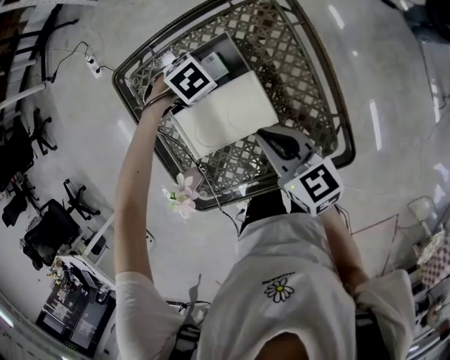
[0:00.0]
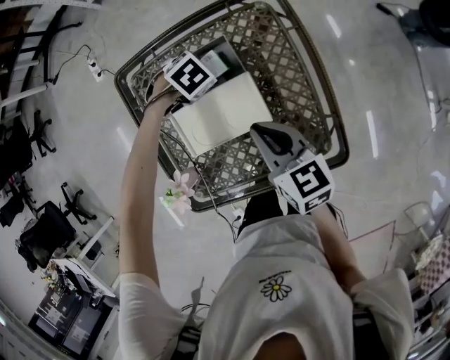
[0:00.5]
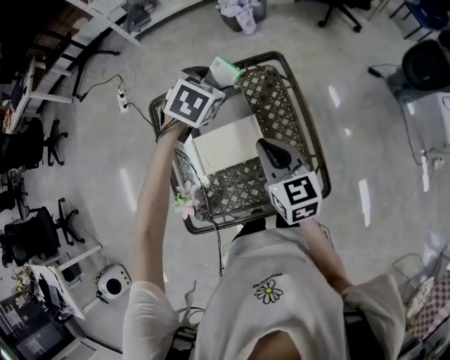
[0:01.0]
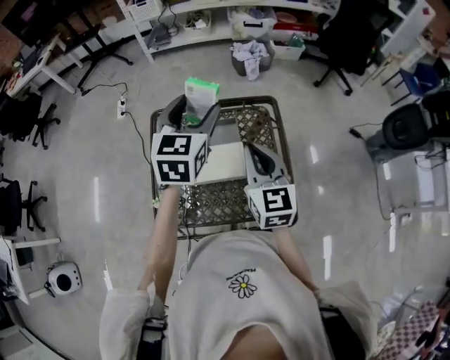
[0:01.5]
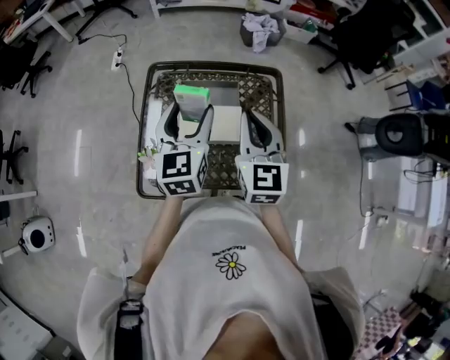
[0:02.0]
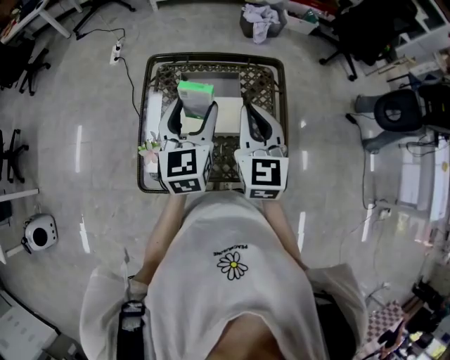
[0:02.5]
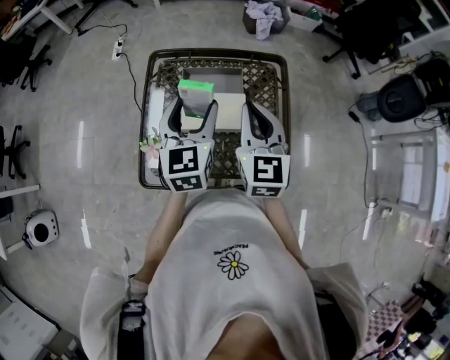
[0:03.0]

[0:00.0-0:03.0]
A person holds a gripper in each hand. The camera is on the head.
0:00.0 to 0:01.5: The left gripper moves upward, approximately 40 cm, and angles its fingers upward, by about 60 degrees. Meanwhile the right gripper is displaced upward by approximately 20 cm, and swivels approximately 30 degrees.
0:01.5 to 0:03.0: The left gripper is displaced backward and downward by some 15 cm.

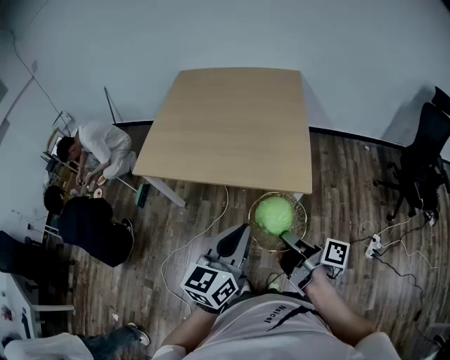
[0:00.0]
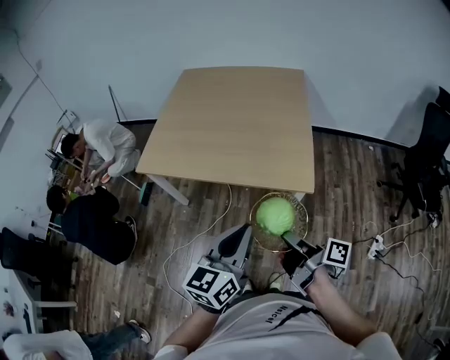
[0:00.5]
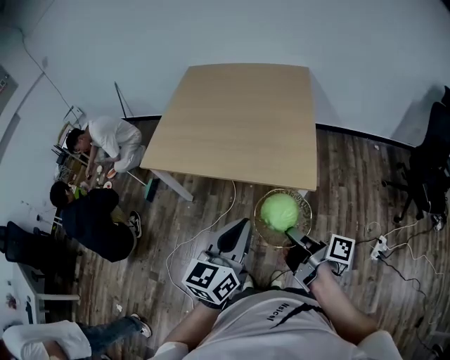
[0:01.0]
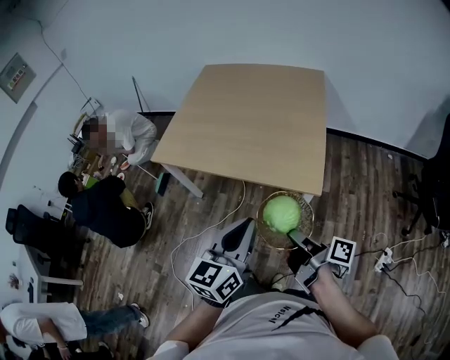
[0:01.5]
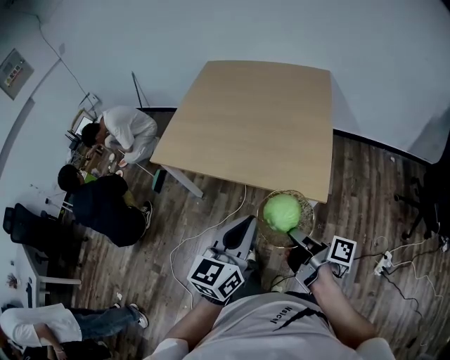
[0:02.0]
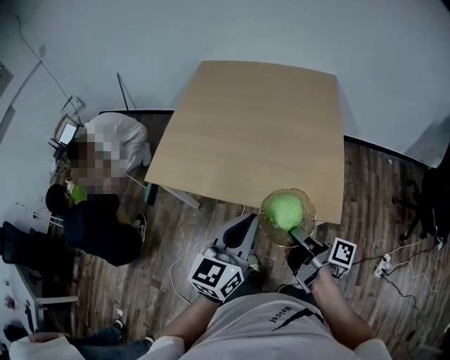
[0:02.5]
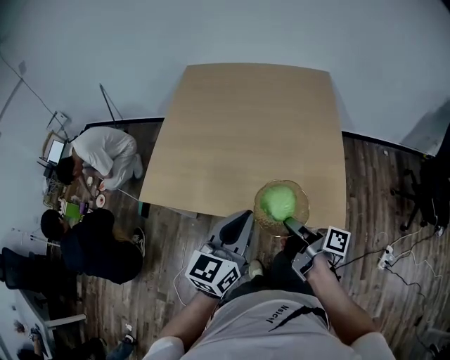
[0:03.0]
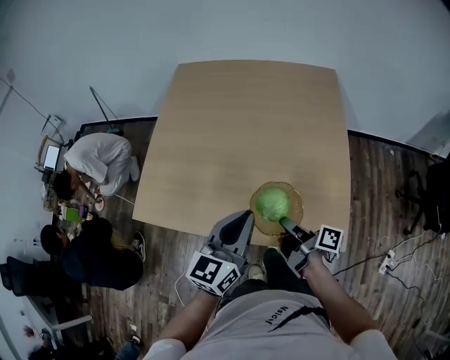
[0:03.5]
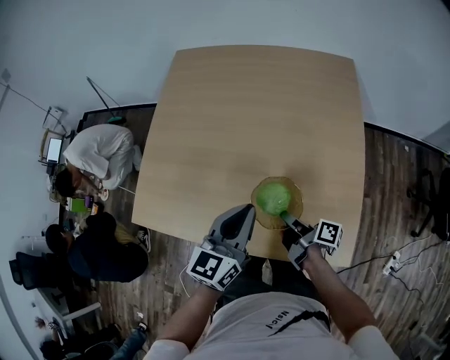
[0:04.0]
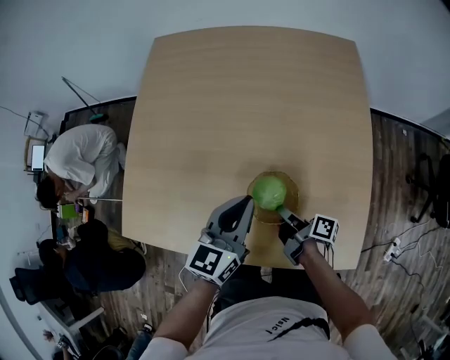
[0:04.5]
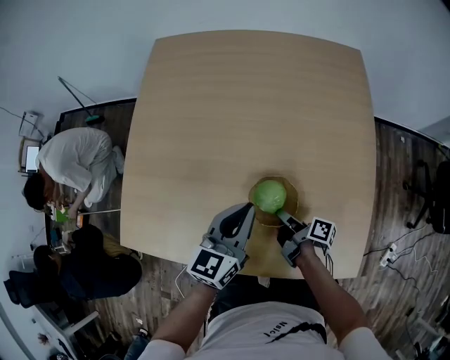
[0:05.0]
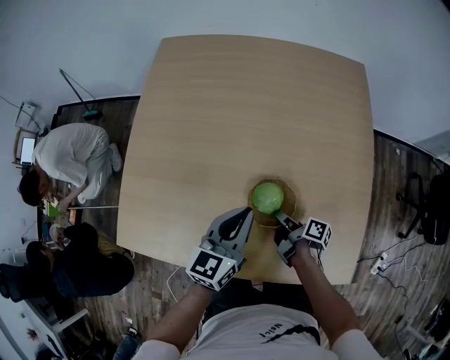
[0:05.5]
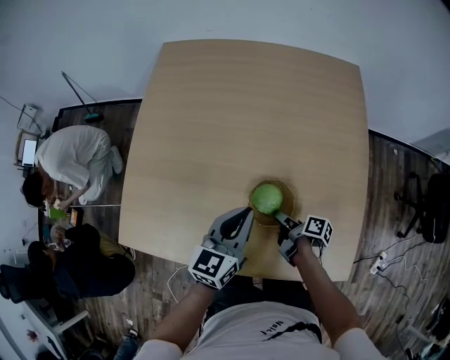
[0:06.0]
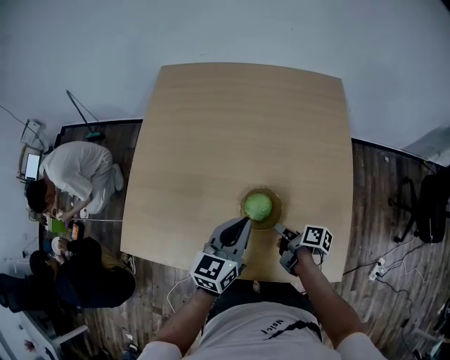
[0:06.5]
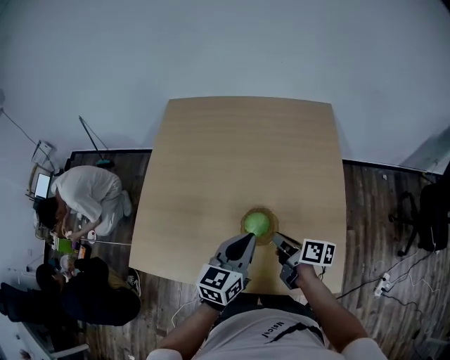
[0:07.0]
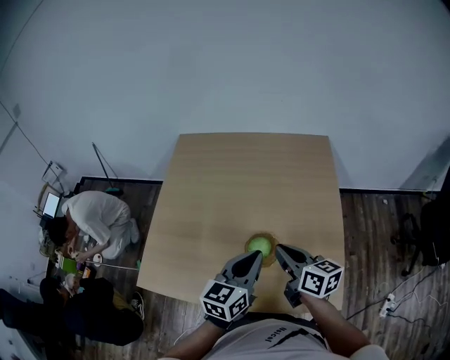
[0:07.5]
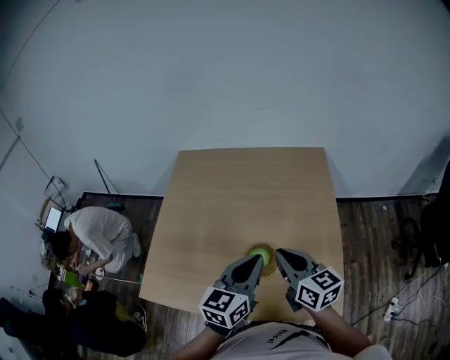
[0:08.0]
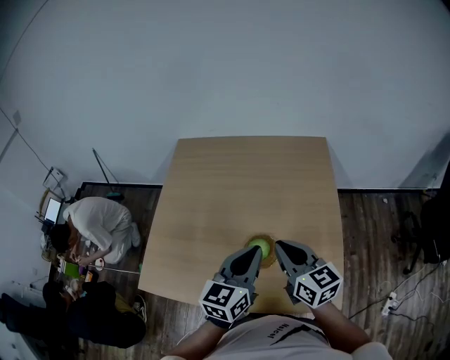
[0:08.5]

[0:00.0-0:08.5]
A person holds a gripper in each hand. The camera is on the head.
0:02.0 to 0:04.0: The left gripper changes place by roughly 40 cm.
0:04.0 to 0:06.5: The left gripper goes about 5 cm downward.
0:06.5 to 0:08.5: The left gripper is displaced upward by roughly 15 cm.

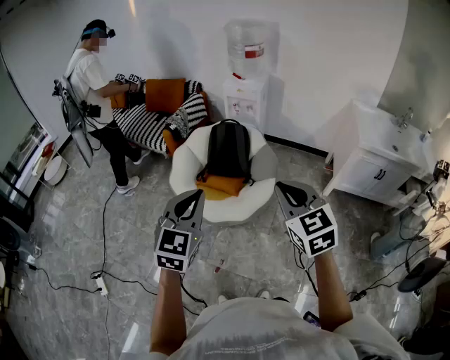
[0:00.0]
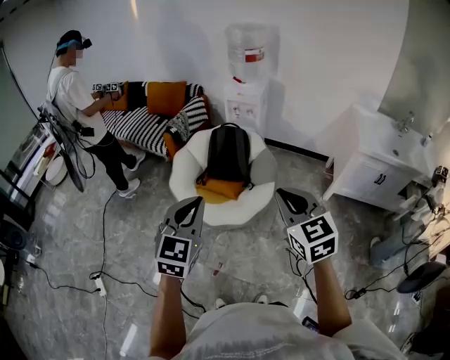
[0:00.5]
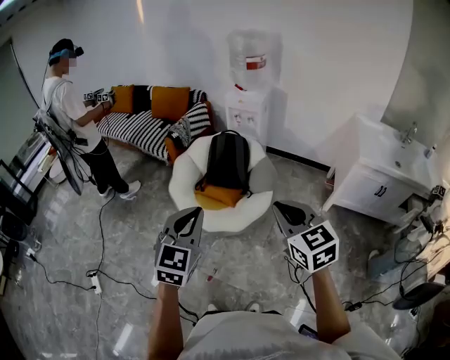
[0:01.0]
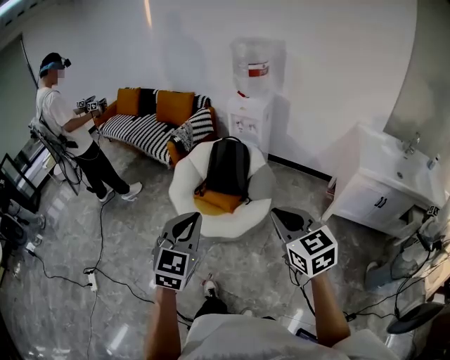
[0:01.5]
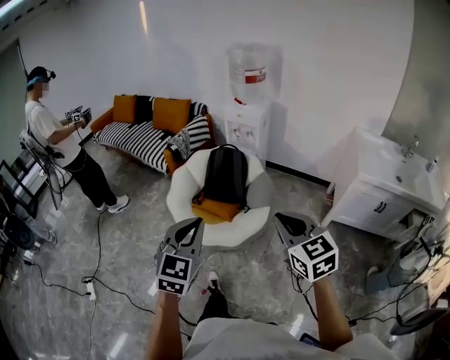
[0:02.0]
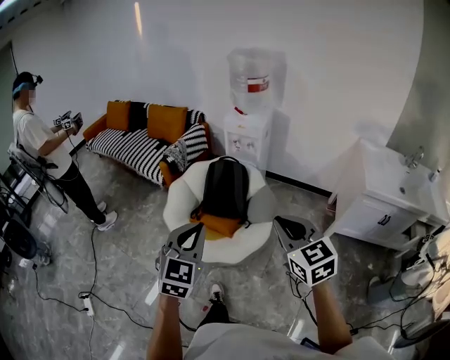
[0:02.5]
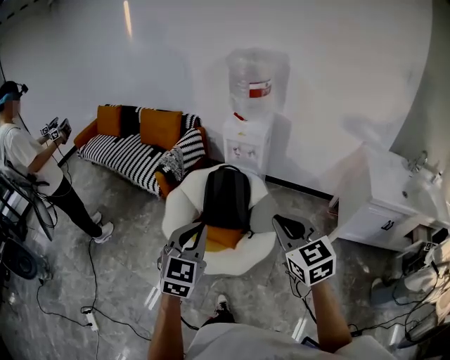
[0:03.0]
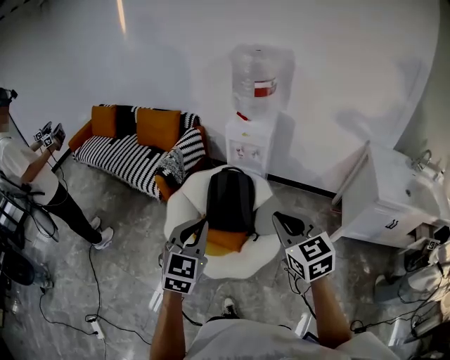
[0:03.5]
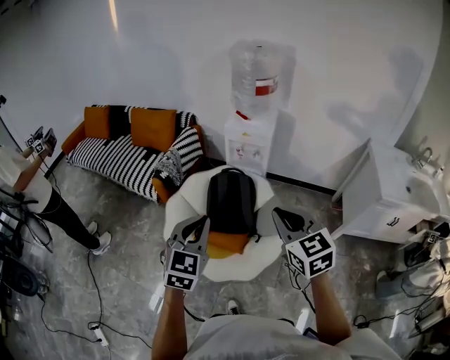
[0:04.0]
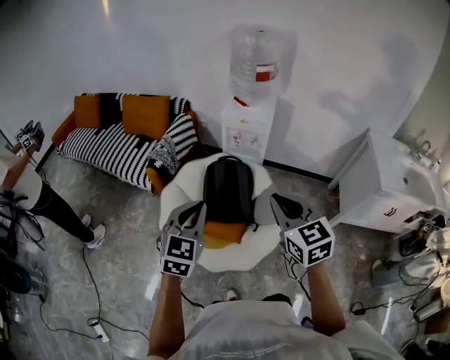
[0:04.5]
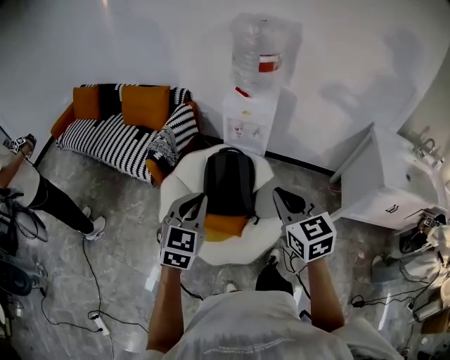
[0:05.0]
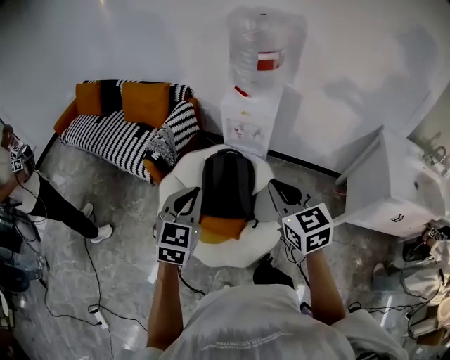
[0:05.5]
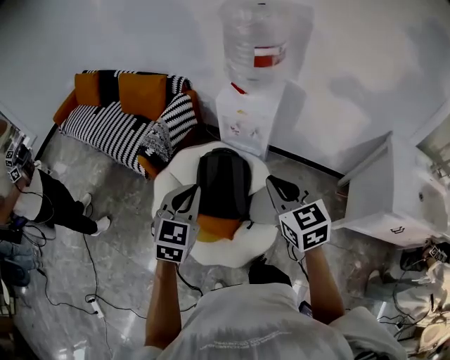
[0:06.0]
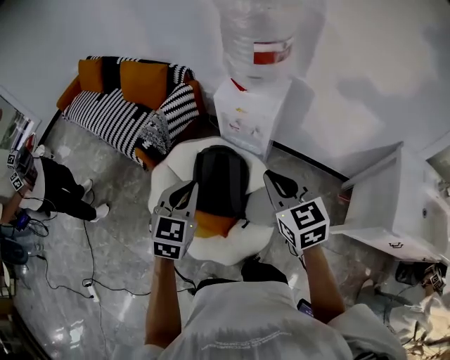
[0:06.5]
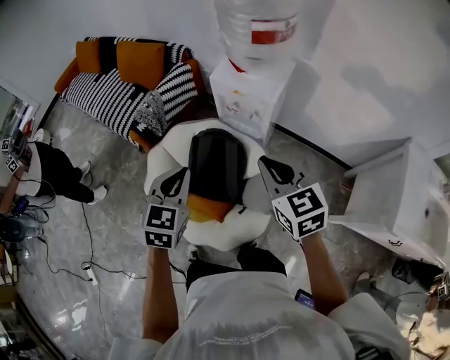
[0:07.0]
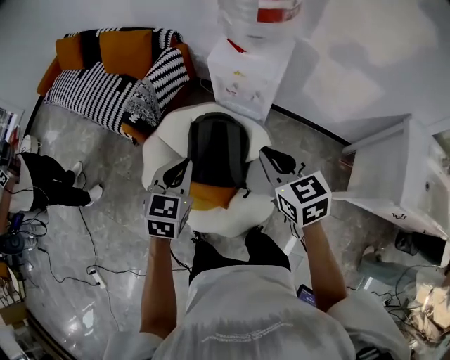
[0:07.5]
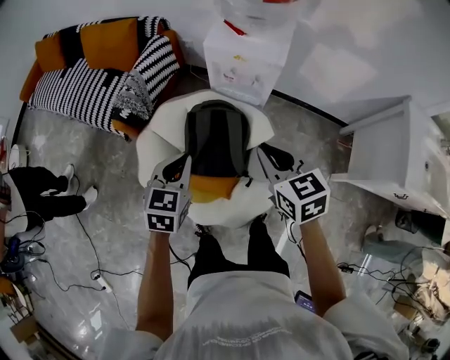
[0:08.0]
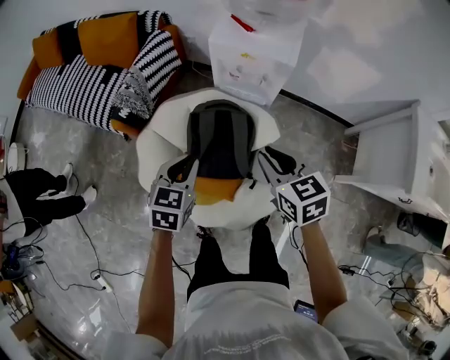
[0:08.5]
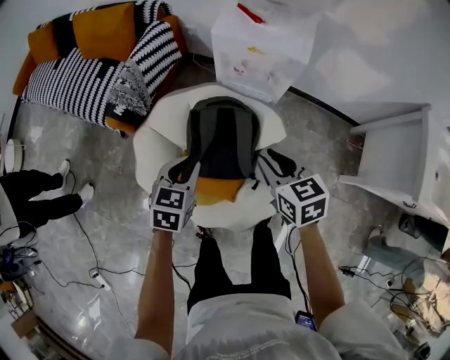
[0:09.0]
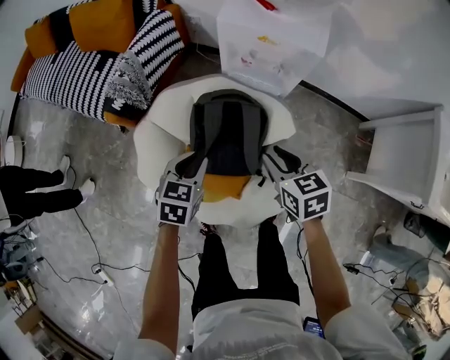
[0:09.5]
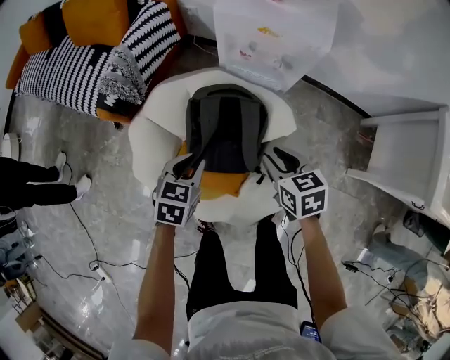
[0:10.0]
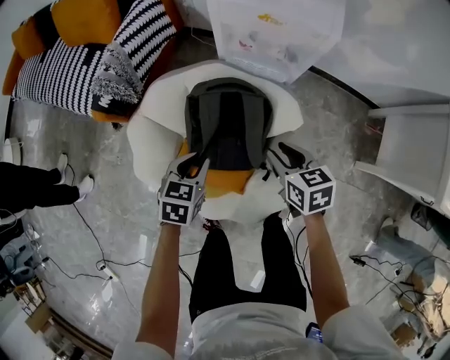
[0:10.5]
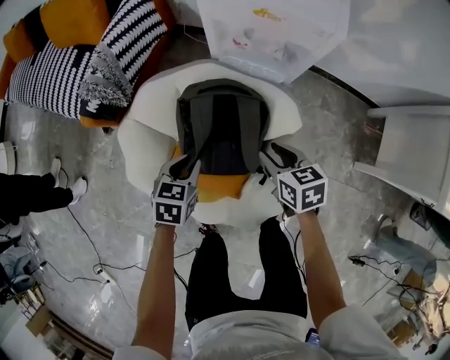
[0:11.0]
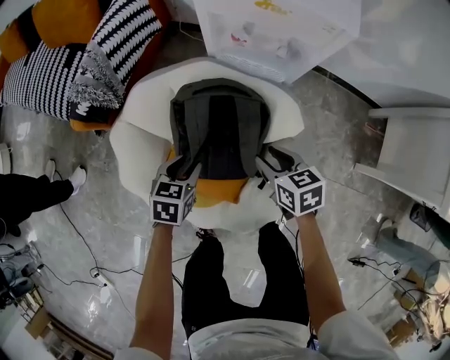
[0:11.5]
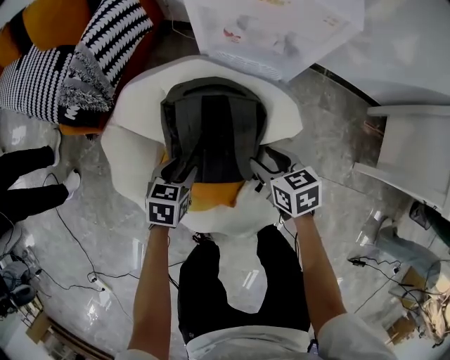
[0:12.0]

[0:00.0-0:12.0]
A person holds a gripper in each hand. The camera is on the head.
0:00.0 to 0:02.0: Both grippers move to the right, roughly 10 cm.
0:02.0 to 0:04.0: The grippers both shift forward by roughly 35 cm.
0:04.0 to 0:06.0: Both grippers travel together forward, some 20 cm.
0:06.0 to 0:08.0: Both grippers travel together downward and forward, some 15 cm.
0:08.0 to 0:10.0: The grippers both shift downward by roughly 20 cm. The right gripper opens its fingers.
0:10.0 to 0:12.0: Both grippers move downward, some 15 cm. The left gripper opens.

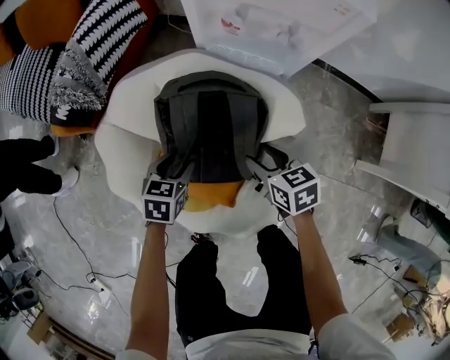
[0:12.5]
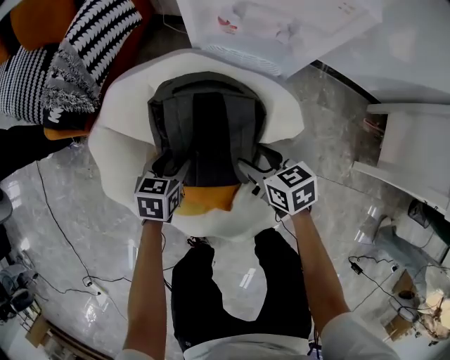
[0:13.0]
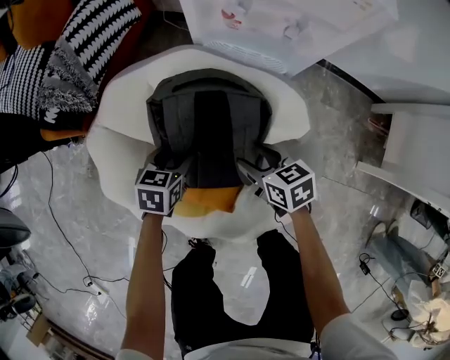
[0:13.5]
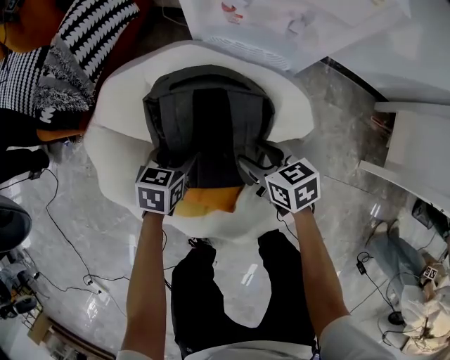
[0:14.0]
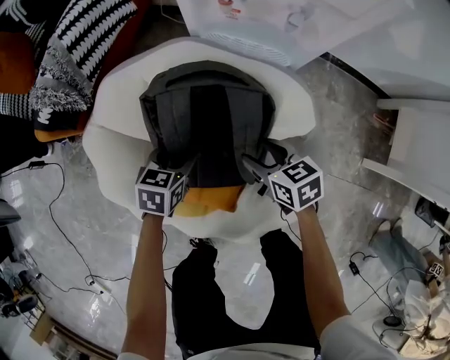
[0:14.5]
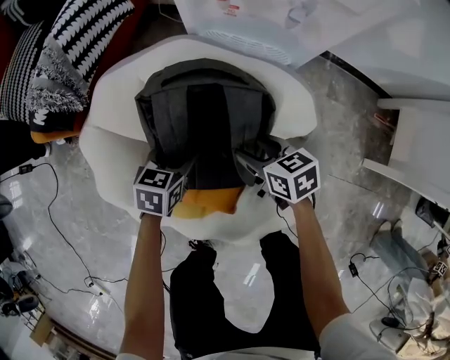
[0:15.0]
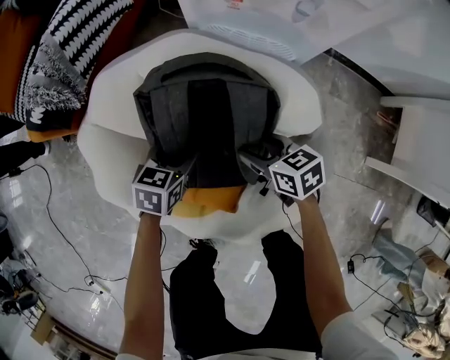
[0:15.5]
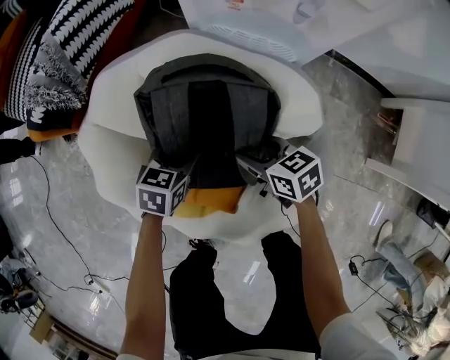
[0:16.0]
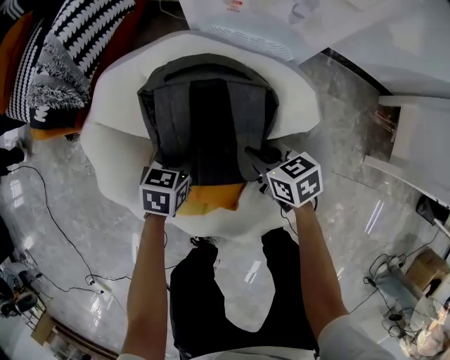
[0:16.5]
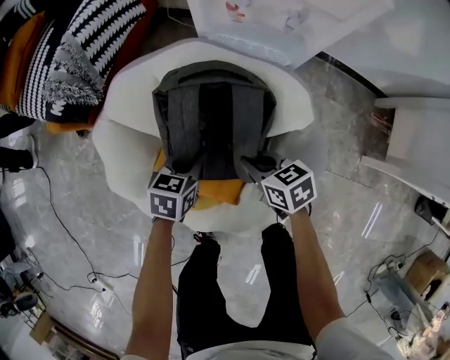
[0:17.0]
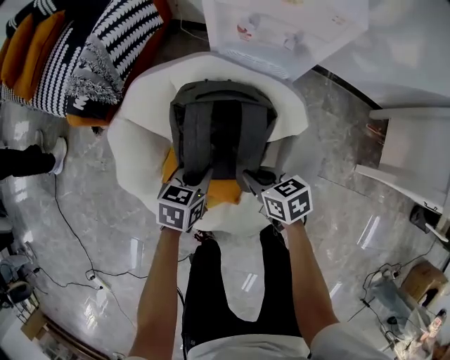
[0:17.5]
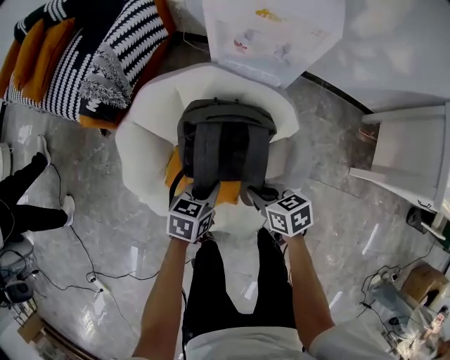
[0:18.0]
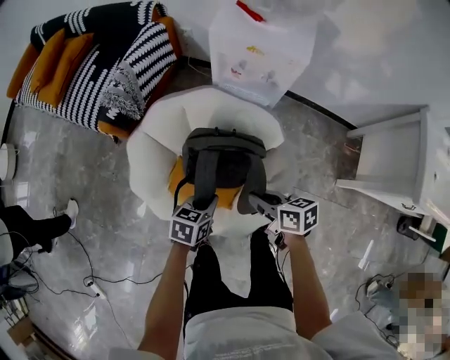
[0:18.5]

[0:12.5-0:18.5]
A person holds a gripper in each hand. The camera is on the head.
0:12.5 to 0:14.5: The two grippers go approximately 5 cm downward.
0:14.5 to 0:16.5: The left gripper closes up. Meanwhile the right gripper closes up.
0:16.5 to 0:18.5: The grippers both shift upward and backward by some 30 cm.
